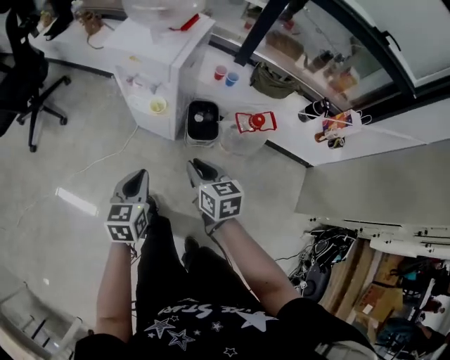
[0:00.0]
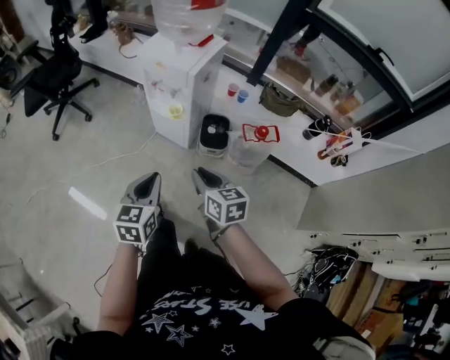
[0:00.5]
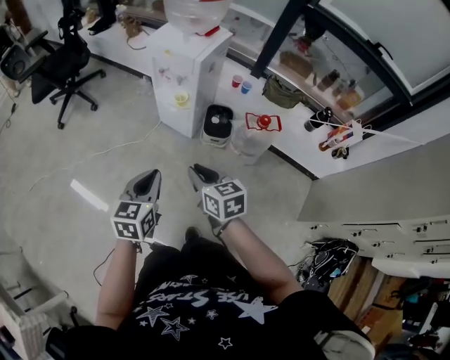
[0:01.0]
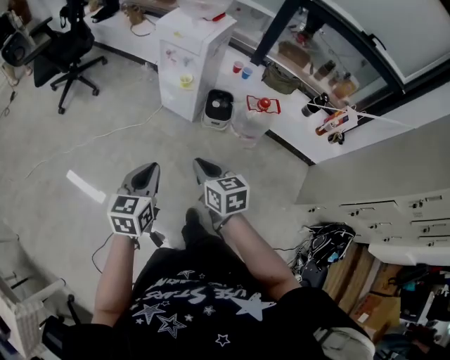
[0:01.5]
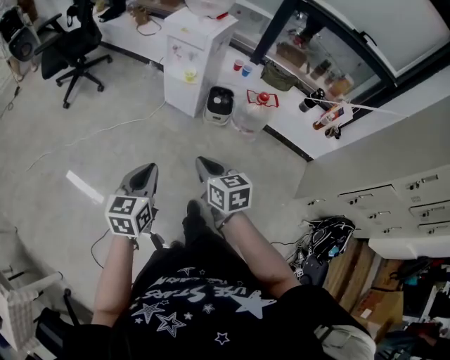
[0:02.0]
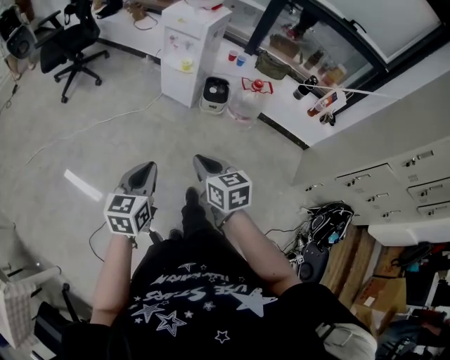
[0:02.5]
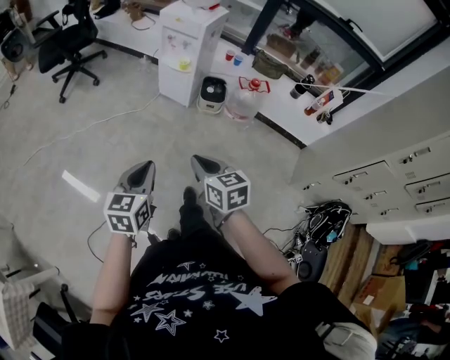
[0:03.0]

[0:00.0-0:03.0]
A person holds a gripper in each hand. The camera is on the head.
0:00.0 to 0:01.5: The left gripper is displaced backward and upward by roughly 30 cm; the right gripper goes about 25 cm backward.
0:01.5 to 0:03.0: Both grippers travel together backward, about 20 cm.

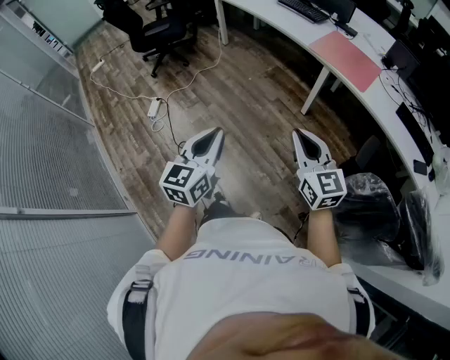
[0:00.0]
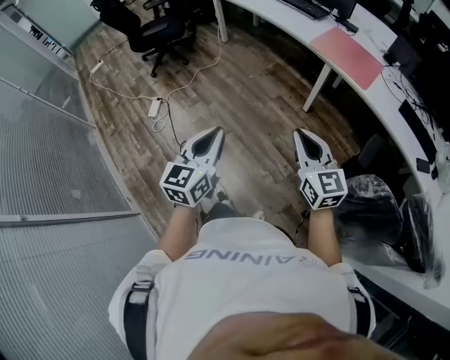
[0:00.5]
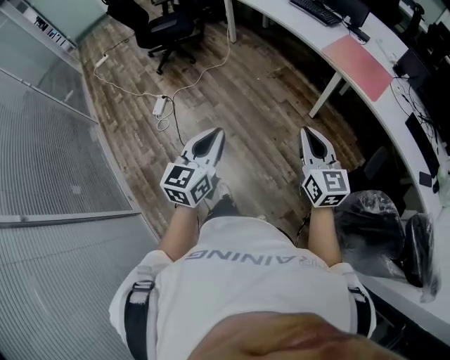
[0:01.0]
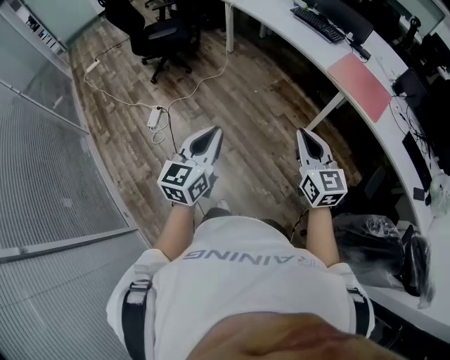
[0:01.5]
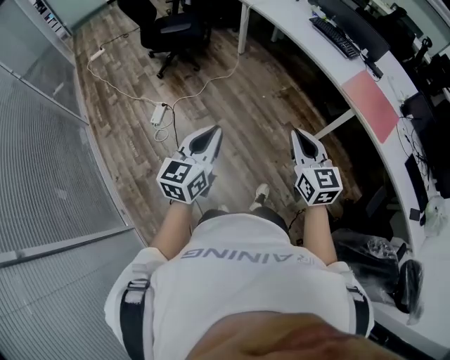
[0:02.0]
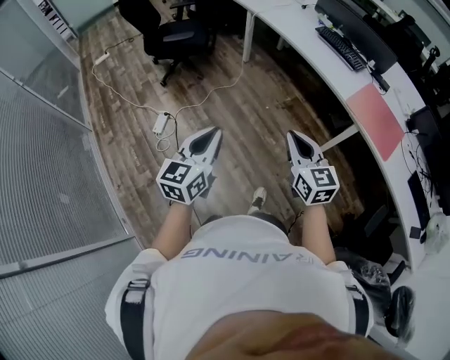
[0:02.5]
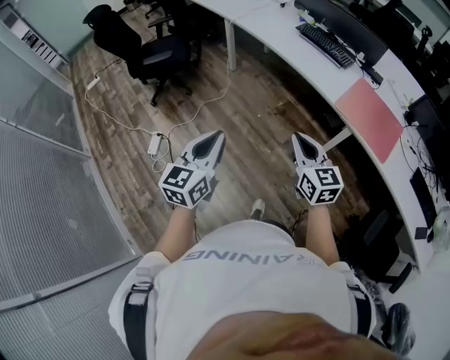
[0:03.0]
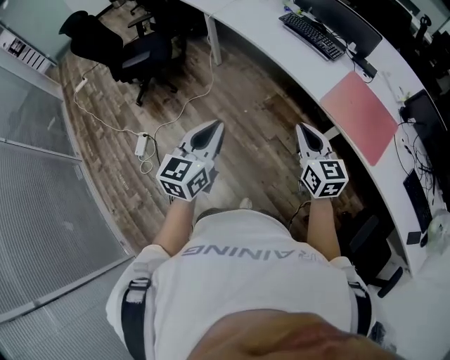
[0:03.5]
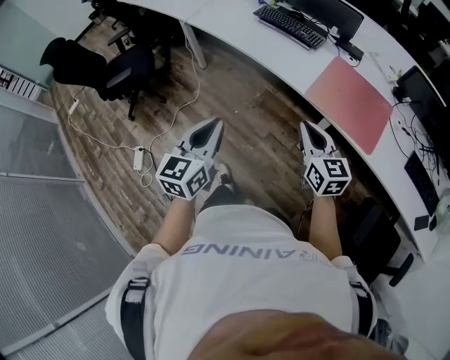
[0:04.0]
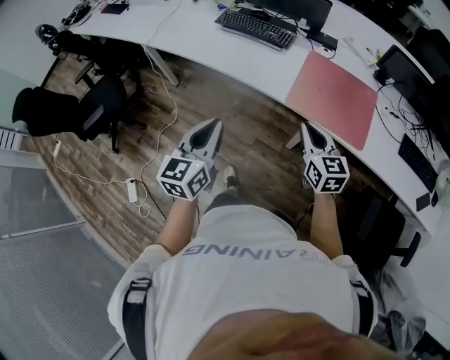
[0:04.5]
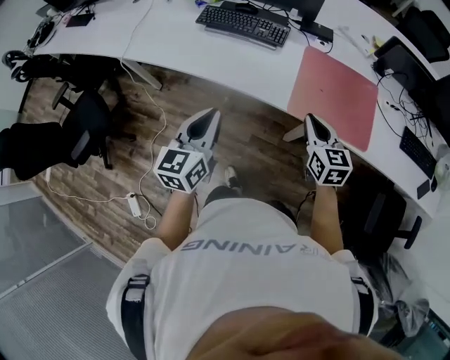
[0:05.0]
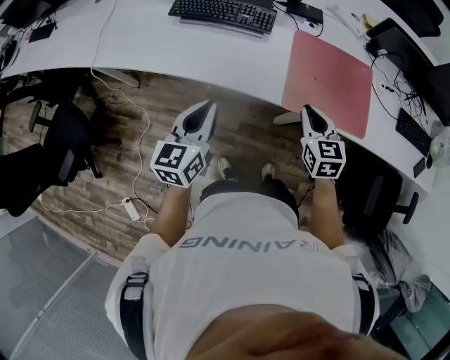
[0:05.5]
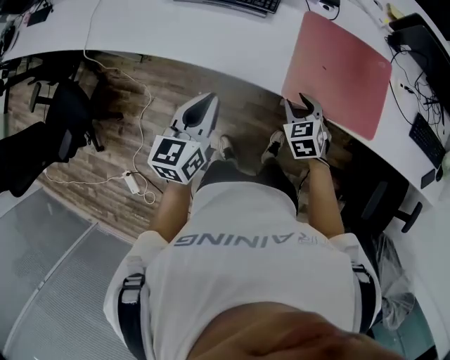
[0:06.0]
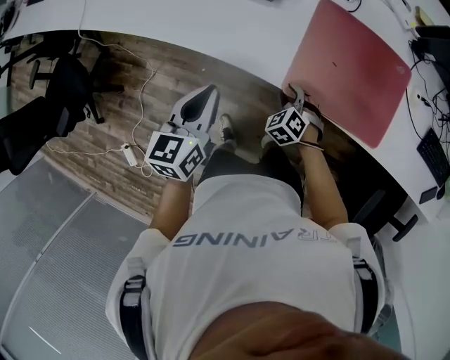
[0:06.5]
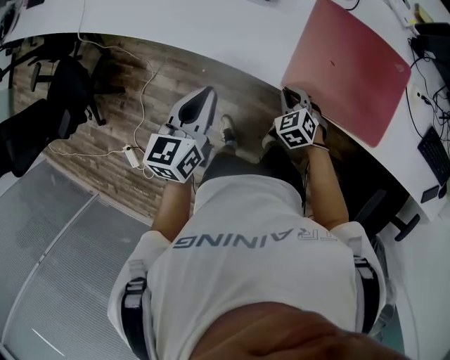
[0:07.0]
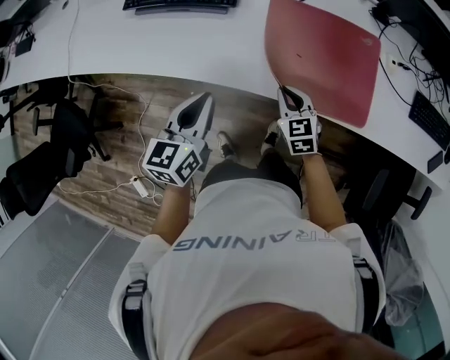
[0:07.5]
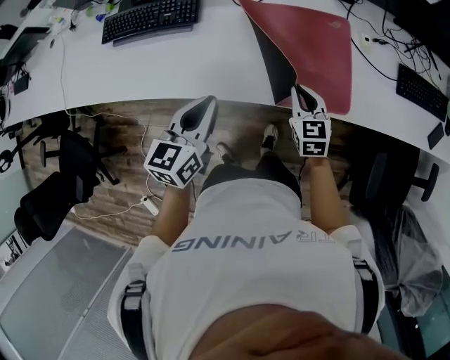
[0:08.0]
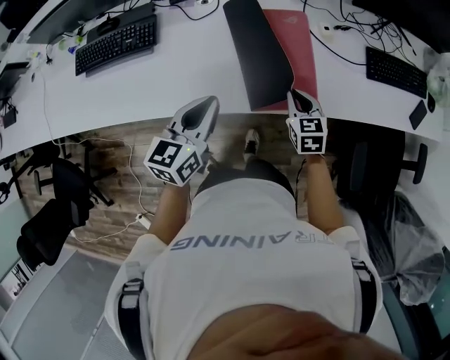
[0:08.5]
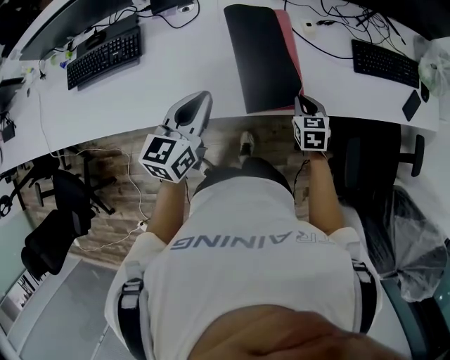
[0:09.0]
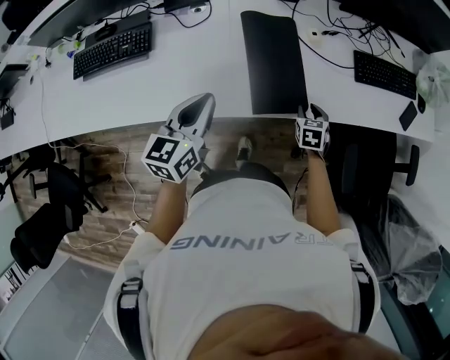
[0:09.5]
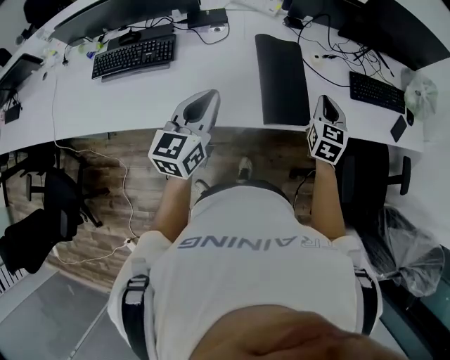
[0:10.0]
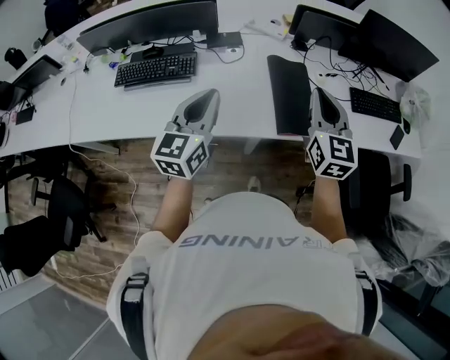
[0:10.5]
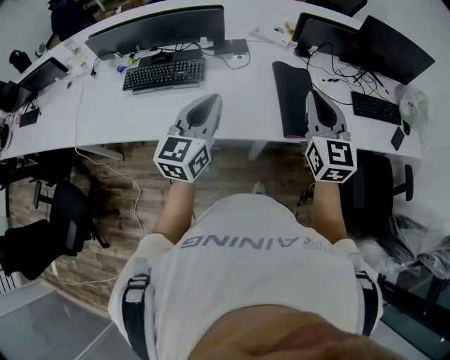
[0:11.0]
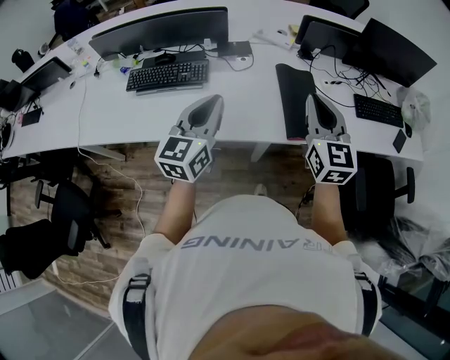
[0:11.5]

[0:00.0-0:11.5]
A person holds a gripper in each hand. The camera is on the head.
0:00.0 to 0:02.0: The right gripper goes roughly 30 cm forward and to the left; the left gripper is displaced to the left and forward by some 30 cm.
0:02.0 to 0:04.0: The two grippers travel together, forward and to the right, some 40 cm.
0:04.0 to 0:06.0: The right gripper ends up approximately 35 cm from where it was, tips its fingers downward by approximately 40 degrees, and opens up. The left gripper moves roughly 40 cm, and changes its angle by approximately 30 degrees.
0:06.0 to 0:07.5: The left gripper heads to the right, covering about 10 cm; the right gripper travels to the right by roughly 5 cm, travels downward and back again, about 10 cm each way, and closes up.
0:07.5 to 0:09.5: The left gripper changes place by roughly 25 cm; the right gripper moves approximately 35 cm, swivels roughly 40 degrees, and opens up.
0:09.5 to 0:11.5: The left gripper heads upward, to the left and backward, covering about 25 cm, and changes its angle by about 20 degrees; the right gripper goes approximately 50 cm upward and to the left, tilts its fingers about 50 degrees upward, and closes its fingers.

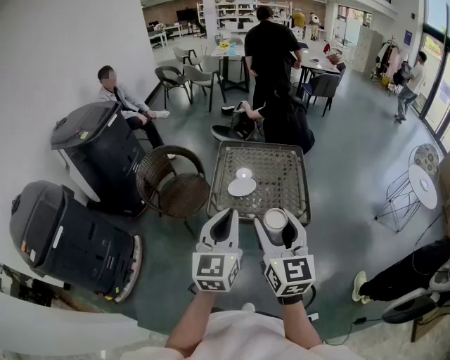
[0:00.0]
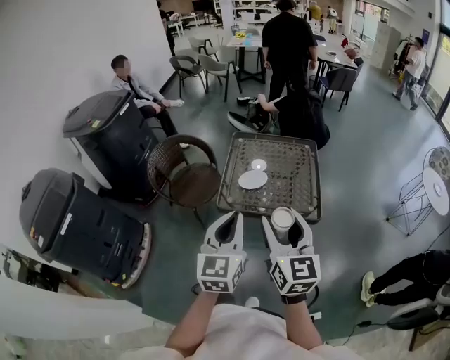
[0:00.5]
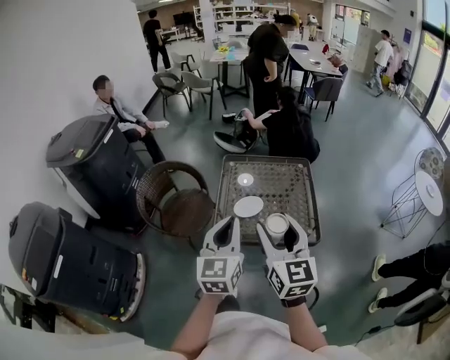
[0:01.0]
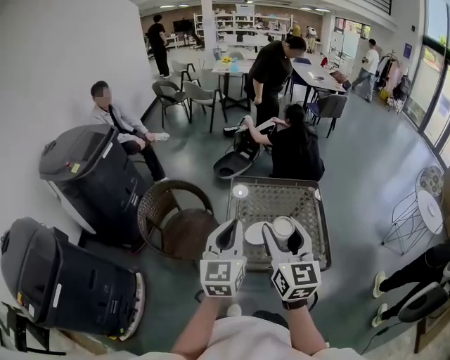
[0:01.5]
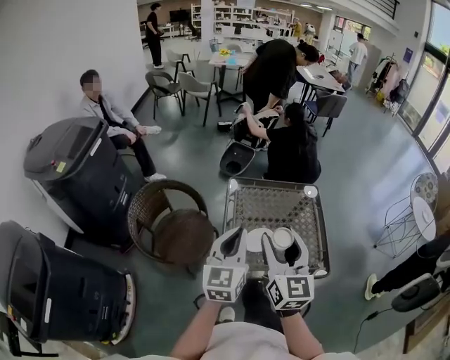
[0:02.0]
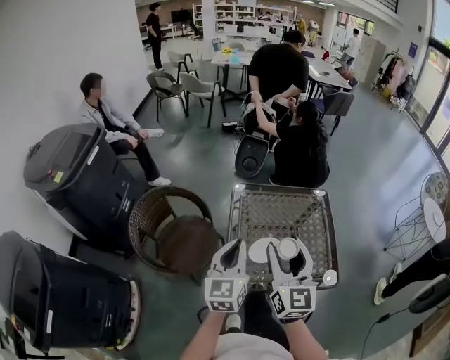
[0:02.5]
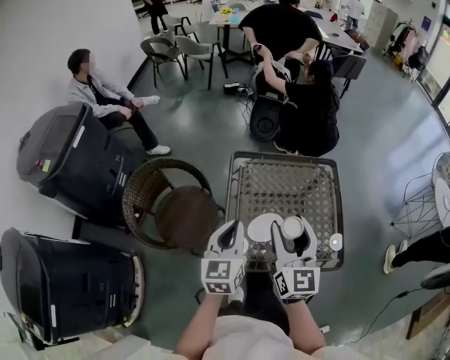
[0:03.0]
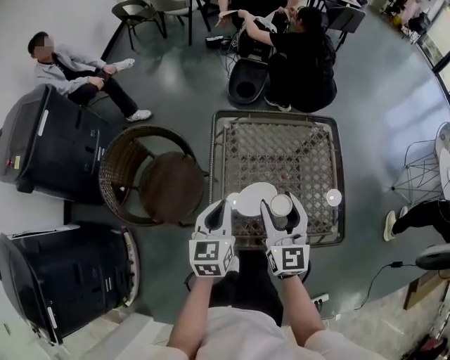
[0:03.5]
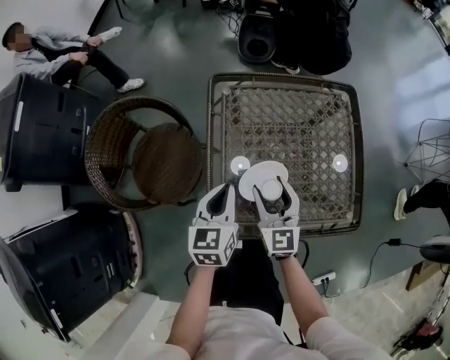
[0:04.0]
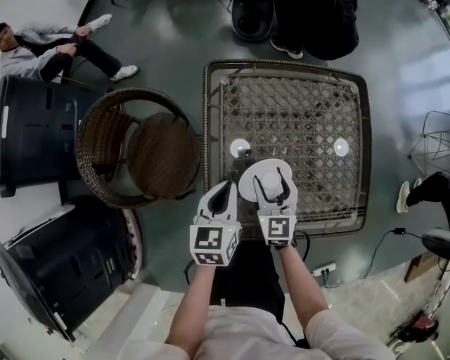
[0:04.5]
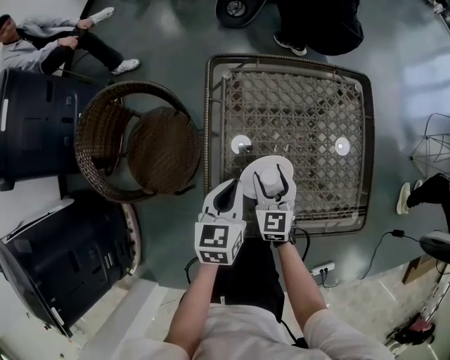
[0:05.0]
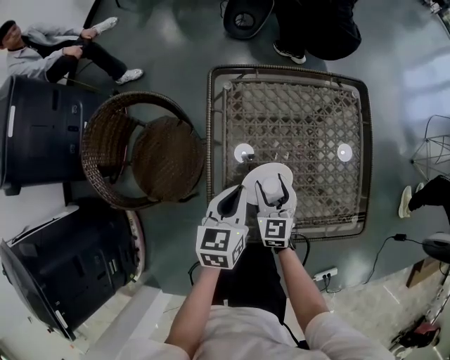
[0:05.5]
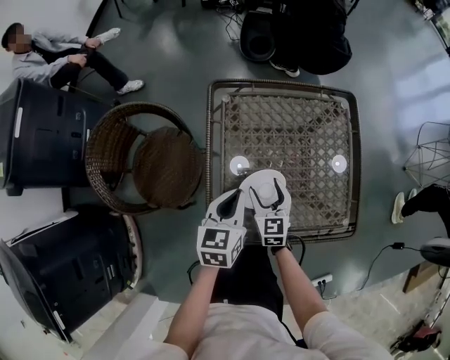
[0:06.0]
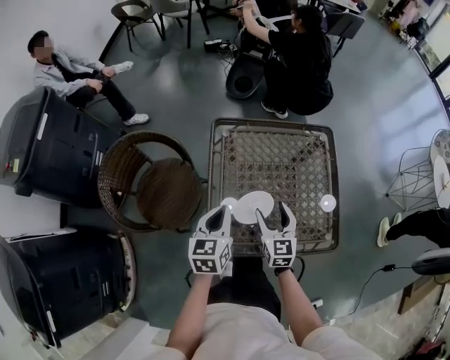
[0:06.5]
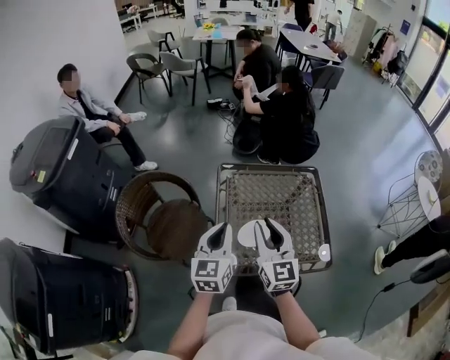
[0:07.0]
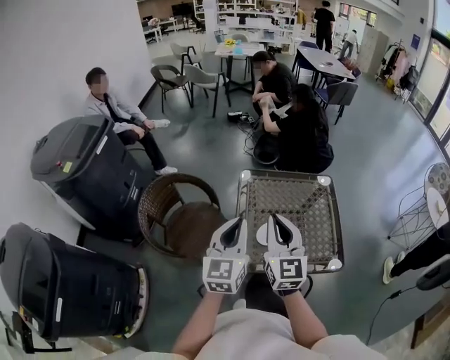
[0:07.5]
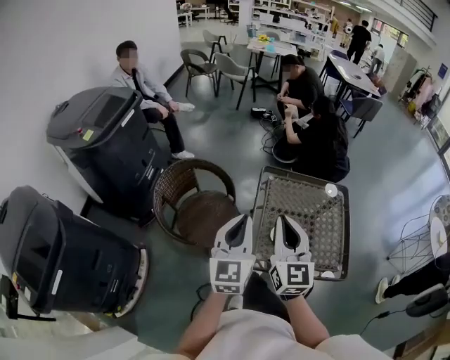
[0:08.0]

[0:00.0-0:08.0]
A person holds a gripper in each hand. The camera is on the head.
0:00.0 to 0:02.0: Both grippers move forward, roughly 30 cm.
0:02.0 to 0:04.0: Both grippers move downward, roughly 30 cm. The left gripper rotates about 30 degrees.
0:04.0 to 0:06.0: The right gripper travels downward by approximately 10 cm.
0:06.0 to 0:08.0: The left gripper moves upward, to the left and backward, roughly 35 cm, and tilts its fingers some 30 degrees upward, while the right gripper goes about 40 cm upward, angles its fingers upward, by approximately 30 degrees, and closes.

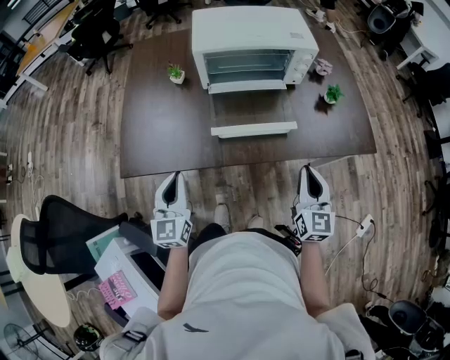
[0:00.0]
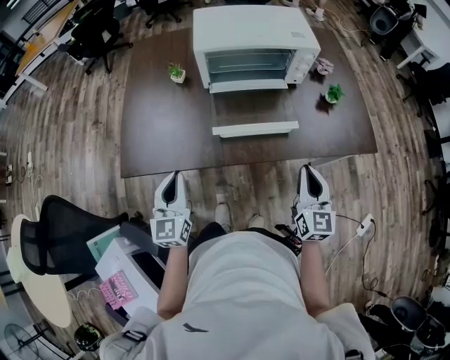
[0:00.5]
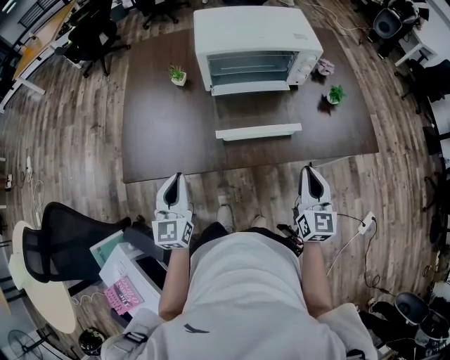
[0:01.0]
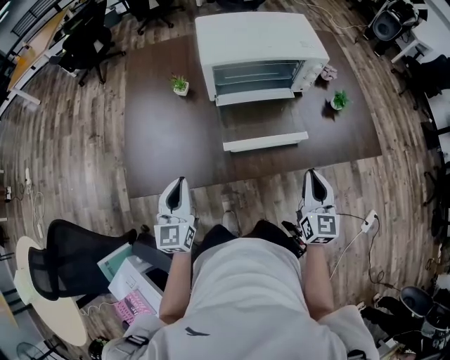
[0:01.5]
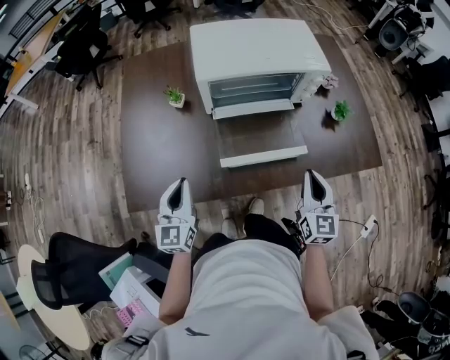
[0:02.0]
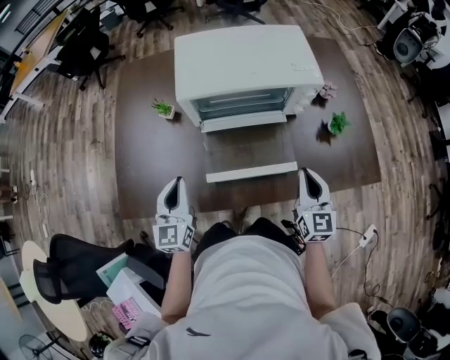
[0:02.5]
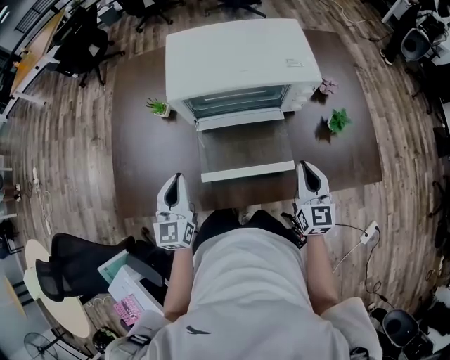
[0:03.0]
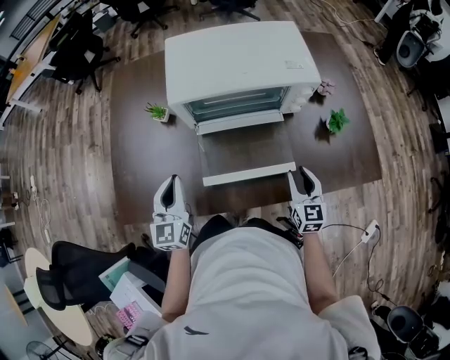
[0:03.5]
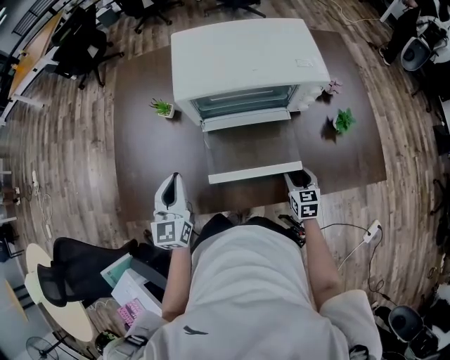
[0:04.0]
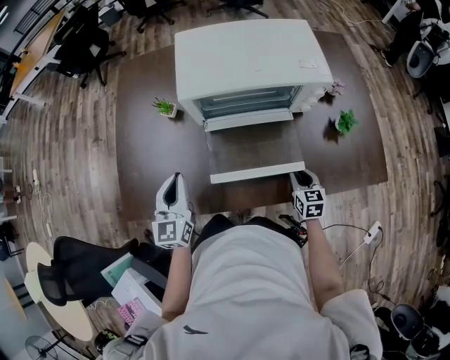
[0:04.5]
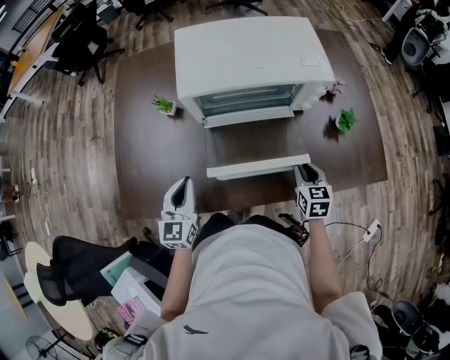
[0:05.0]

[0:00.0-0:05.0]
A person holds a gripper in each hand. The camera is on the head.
0:00.0 to 0:02.5: Both grippers travel together forward, about 15 cm.
0:02.5 to 0:05.0: The left gripper goes some 5 cm downward, while the right gripper is displaced downward by approximately 10 cm, rotates about 30 degrees, and opens, then closes once more.
